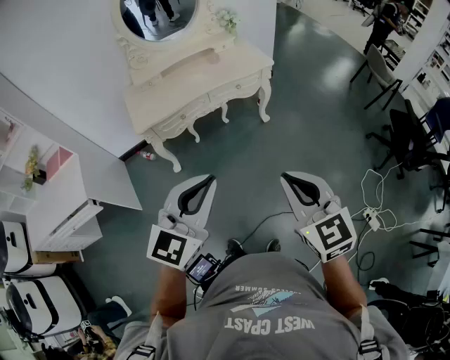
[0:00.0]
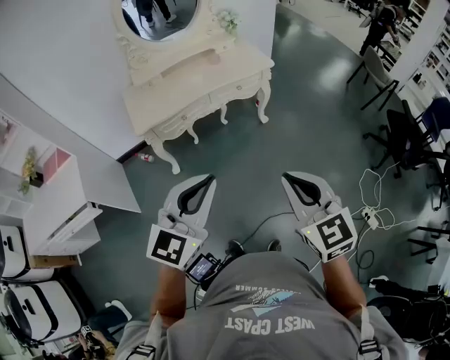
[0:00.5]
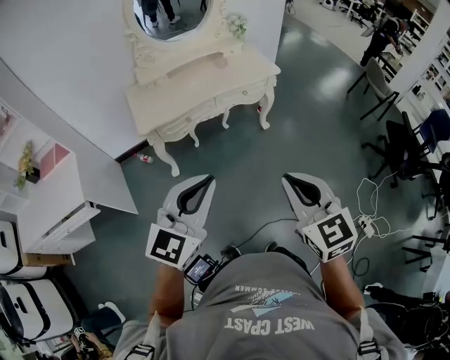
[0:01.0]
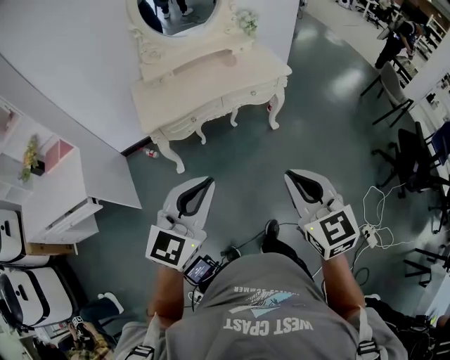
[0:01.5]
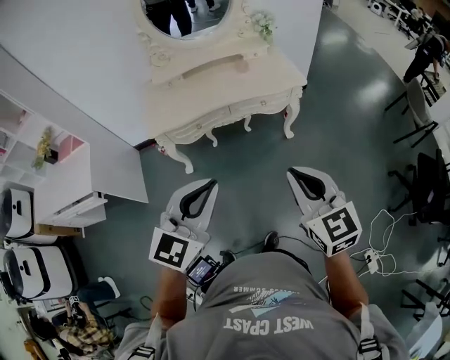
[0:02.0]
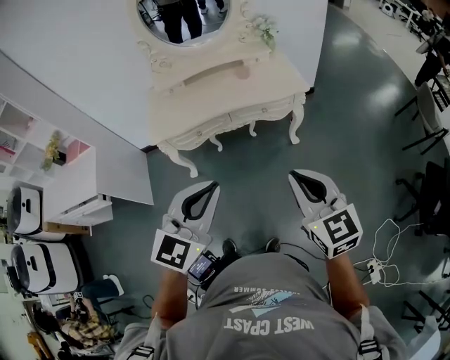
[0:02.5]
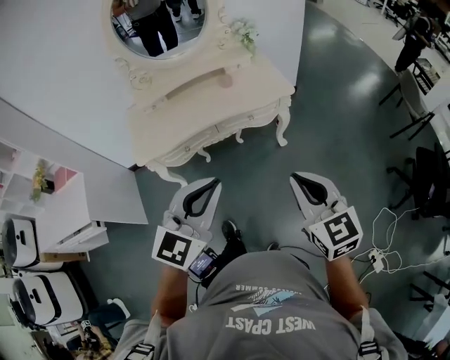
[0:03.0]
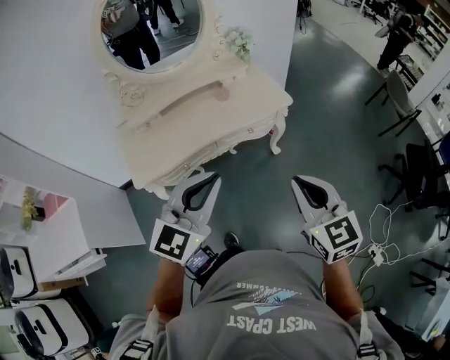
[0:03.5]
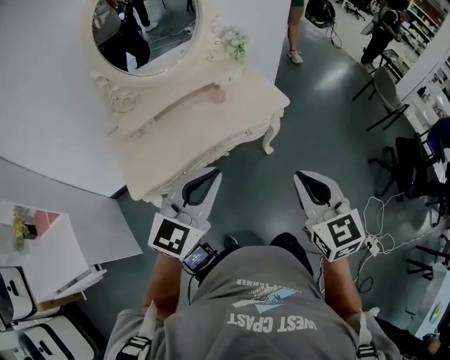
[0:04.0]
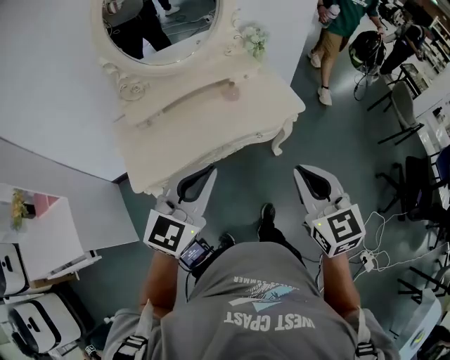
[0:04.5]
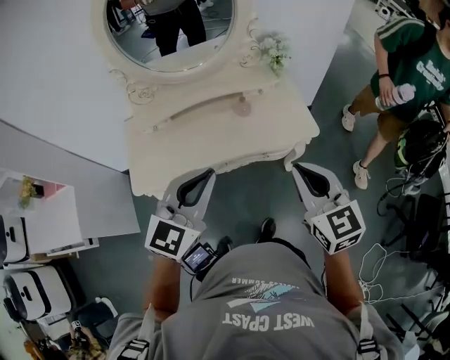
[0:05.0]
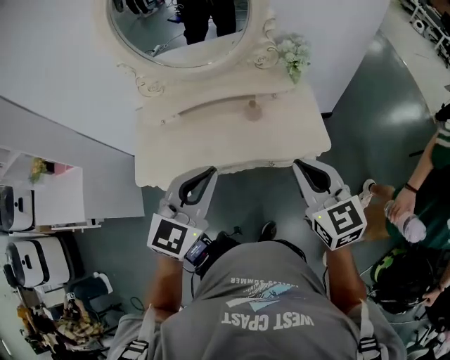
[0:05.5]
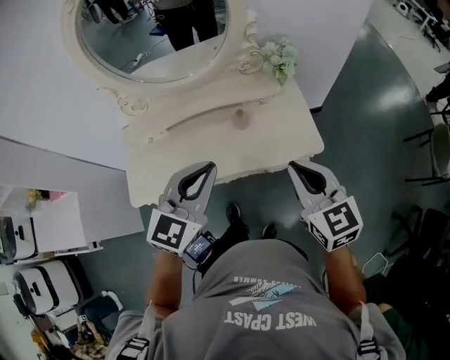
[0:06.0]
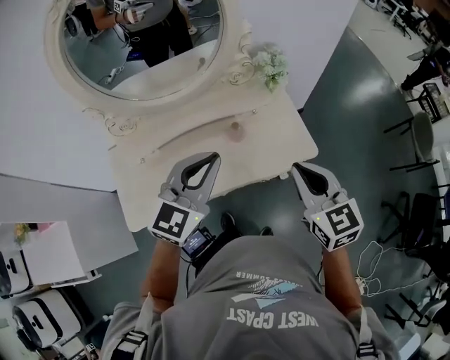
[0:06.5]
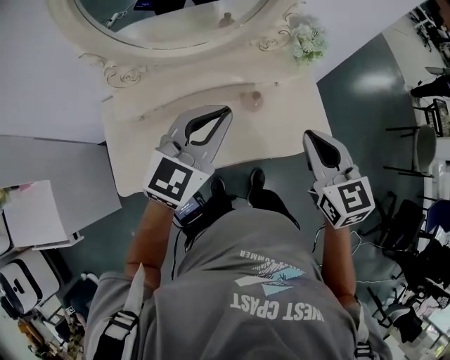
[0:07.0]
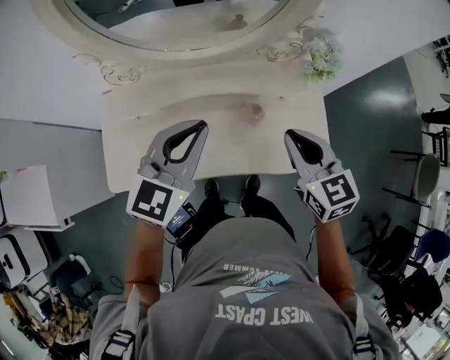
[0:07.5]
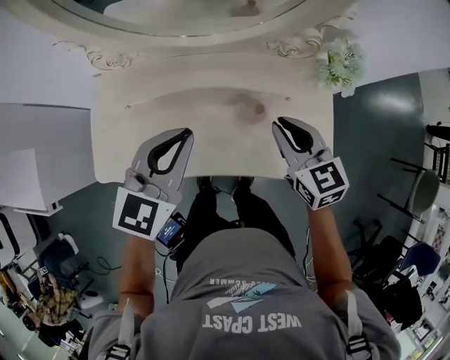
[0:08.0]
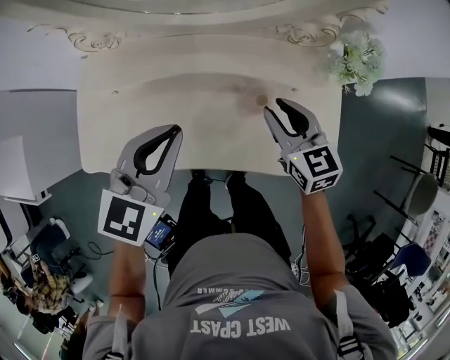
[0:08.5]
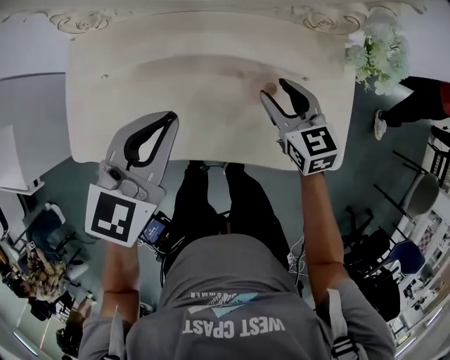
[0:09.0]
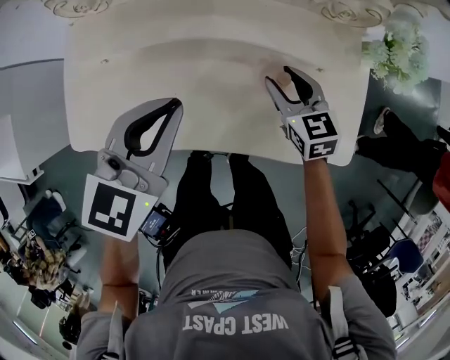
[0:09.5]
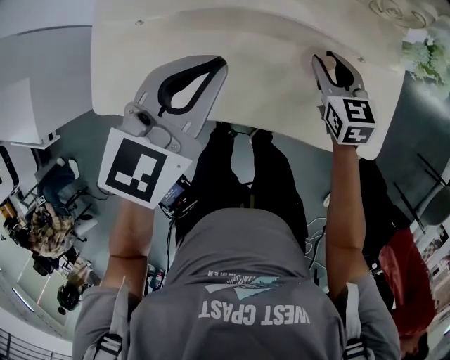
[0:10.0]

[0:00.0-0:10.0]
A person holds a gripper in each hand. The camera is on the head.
0:00.0 to 0:02.0: Both grippers move forward, some 20 cm.
0:02.0 to 0:04.0: The right gripper is displaced forward and to the left by some 20 cm. The left gripper shifts about 25 cm forward.
0:04.0 to 0:06.0: The left gripper ends up some 30 cm from where it was, and rotates approximately 20 degrees. Meanwhile the right gripper changes place by approximately 35 cm, and turns by some 20 degrees.
0:06.0 to 0:08.0: The left gripper shifts some 25 cm forward, to the left and downward; the right gripper travels forward, downward and to the left by about 30 cm.
0:08.0 to 0:10.0: The right gripper goes approximately 20 cm downward. The left gripper goes some 10 cm downward.

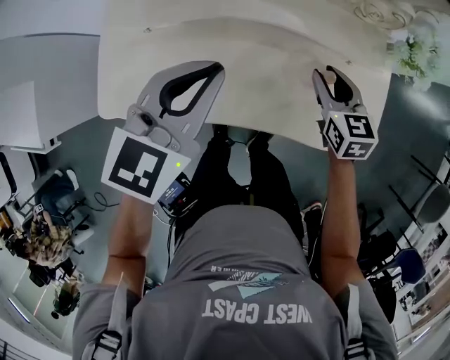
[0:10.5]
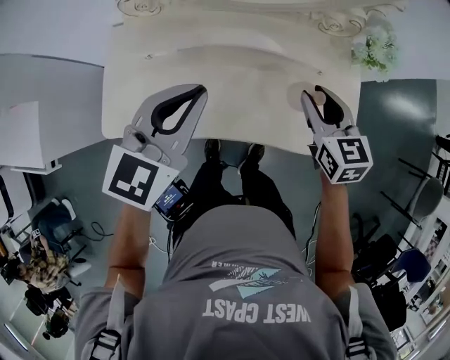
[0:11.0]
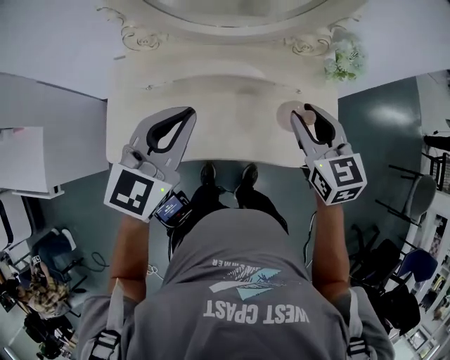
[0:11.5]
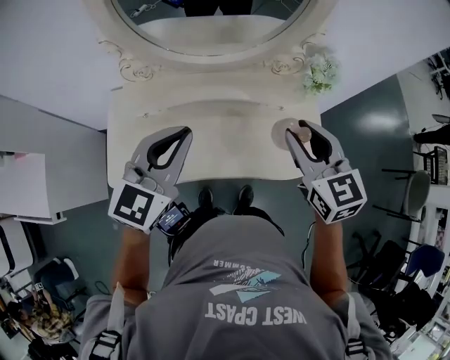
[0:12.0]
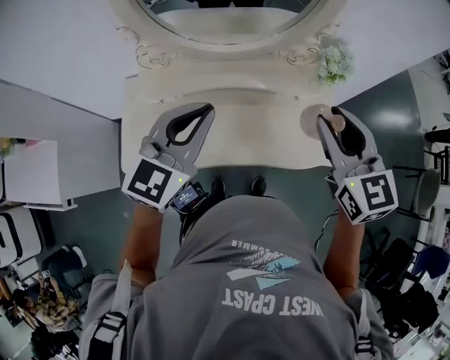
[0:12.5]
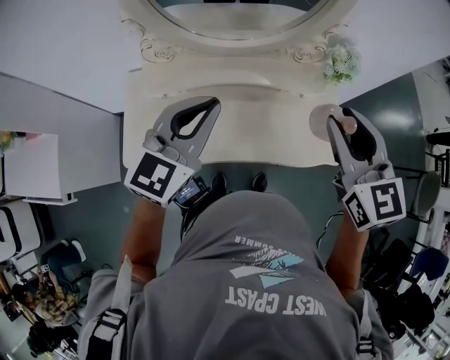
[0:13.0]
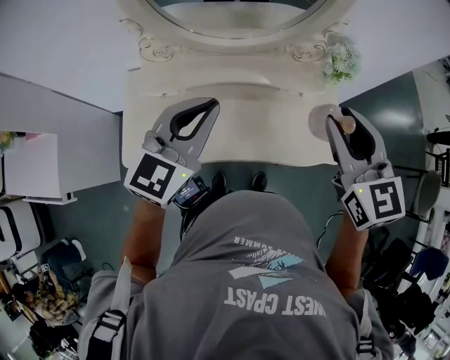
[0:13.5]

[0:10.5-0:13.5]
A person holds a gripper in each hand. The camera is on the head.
0:10.5 to 0:12.0: The left gripper goes roughly 15 cm upward, while the right gripper moves upward, approximately 30 cm.
0:12.0 to 0:13.5: The right gripper shifts some 5 cm upward.

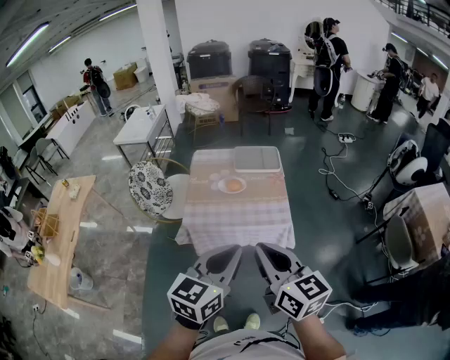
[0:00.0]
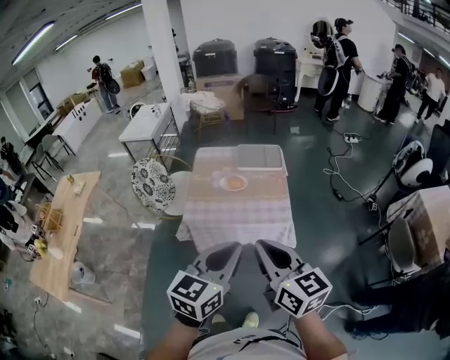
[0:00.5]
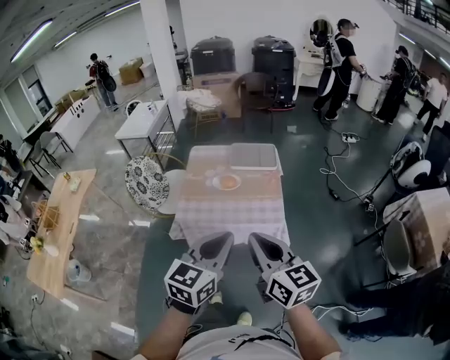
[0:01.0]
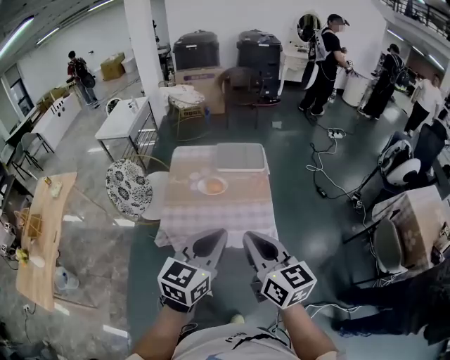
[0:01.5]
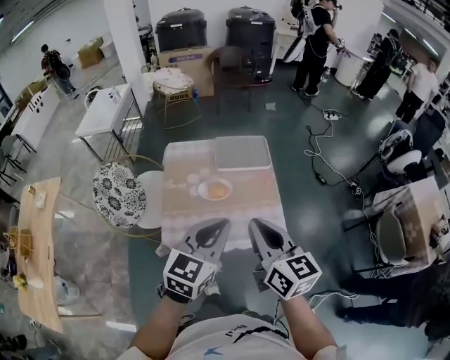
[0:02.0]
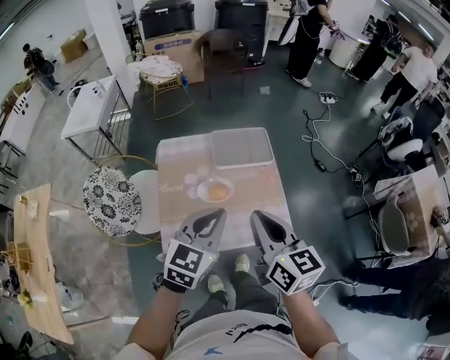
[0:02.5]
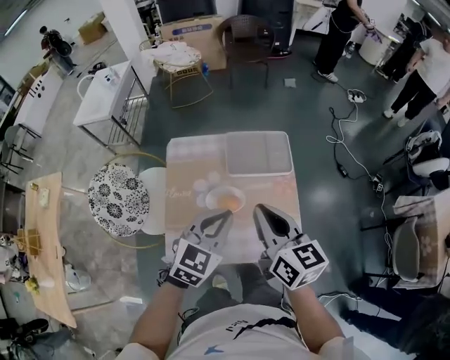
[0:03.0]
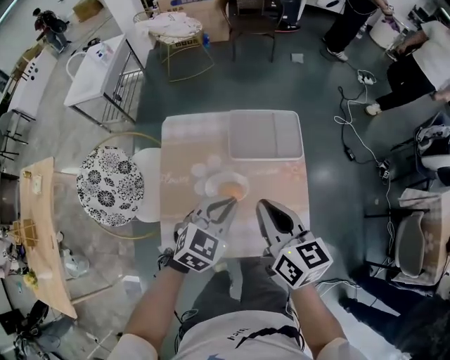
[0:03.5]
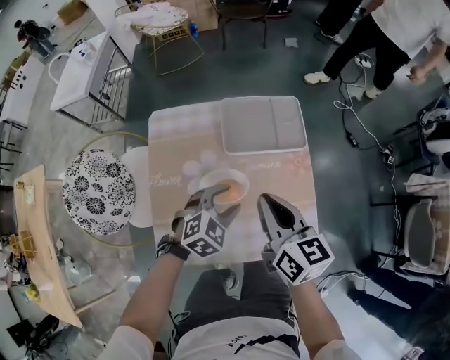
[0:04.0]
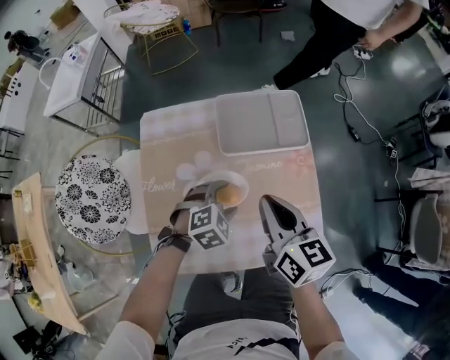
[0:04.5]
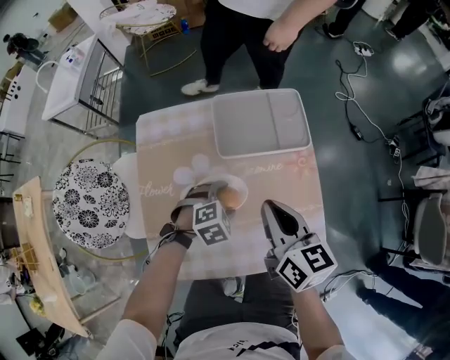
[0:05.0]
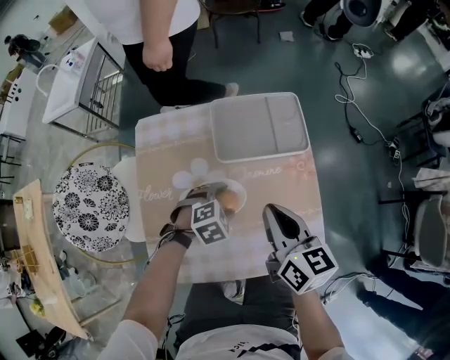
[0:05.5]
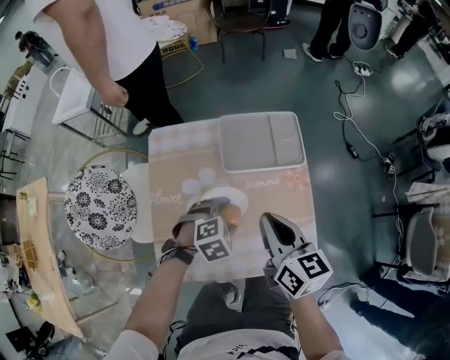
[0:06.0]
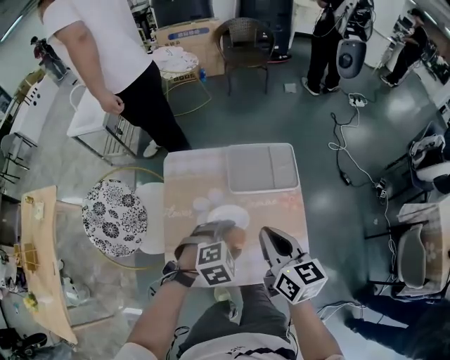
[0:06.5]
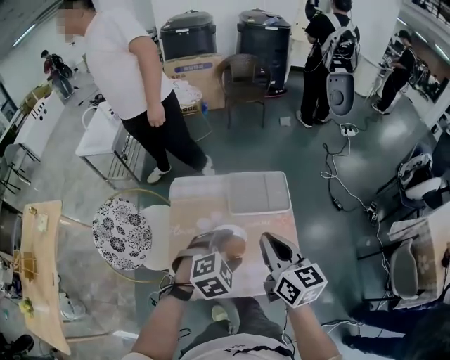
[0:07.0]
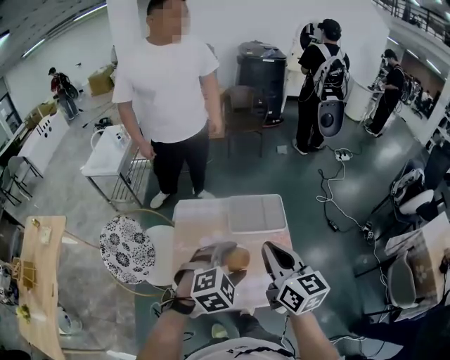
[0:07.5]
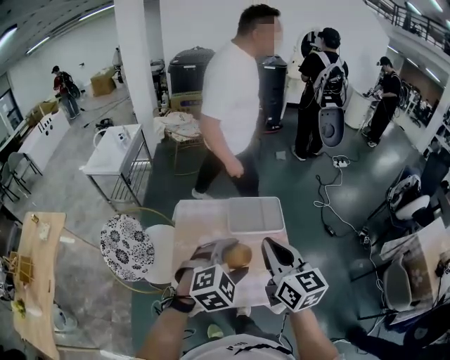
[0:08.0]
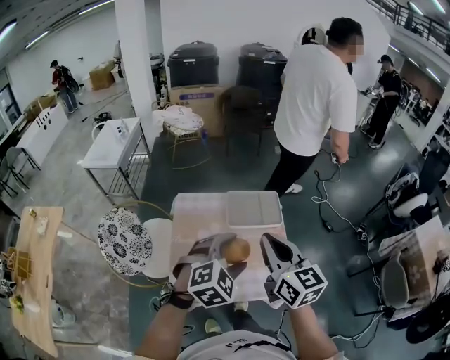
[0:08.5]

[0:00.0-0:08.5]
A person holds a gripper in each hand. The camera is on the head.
0:00.0 to 0:02.0: The grippers both shift forward by about 25 cm.
0:02.0 to 0:04.0: The left gripper travels downward and forward by roughly 40 cm, angles its fingers downward, by about 30 degrees, and opens its fingers, while the right gripper heads forward and downward, covering about 30 cm.
0:04.0 to 0:06.5: The two grippers go approximately 5 cm upward. The left gripper opens.
0:06.5 to 0:08.5: The grippers both shift upward by some 20 cm. The left gripper swivels some 20 degrees.

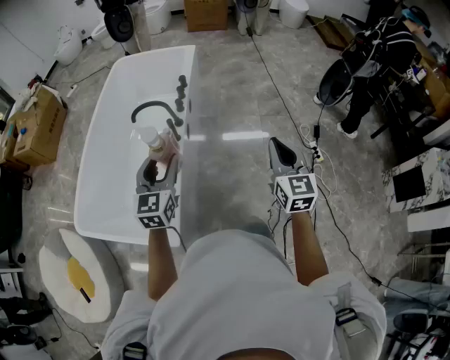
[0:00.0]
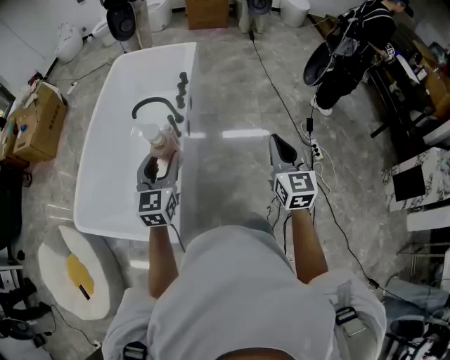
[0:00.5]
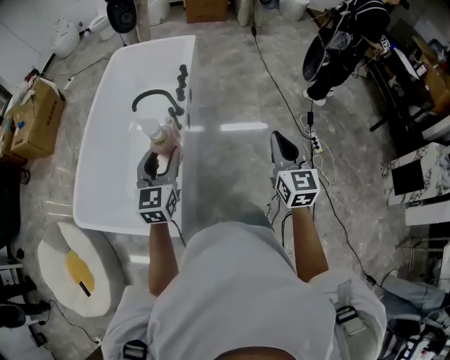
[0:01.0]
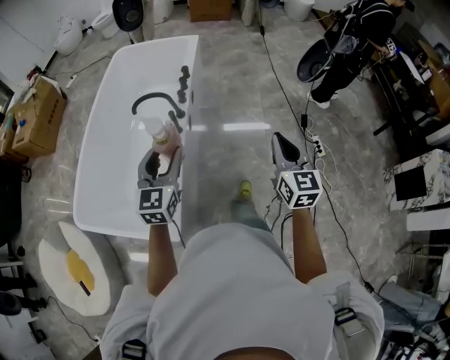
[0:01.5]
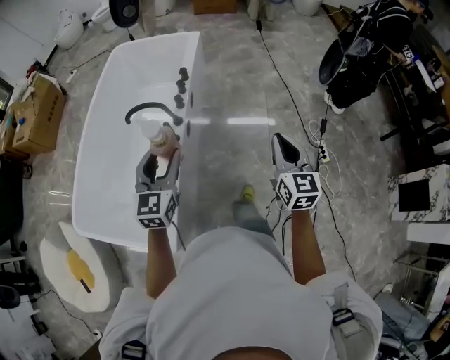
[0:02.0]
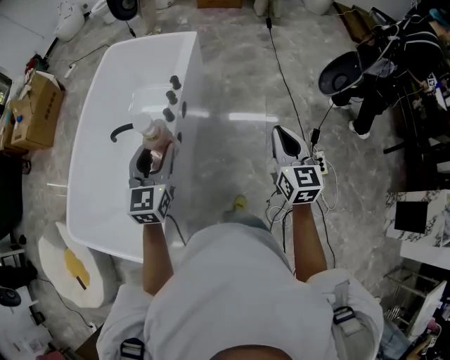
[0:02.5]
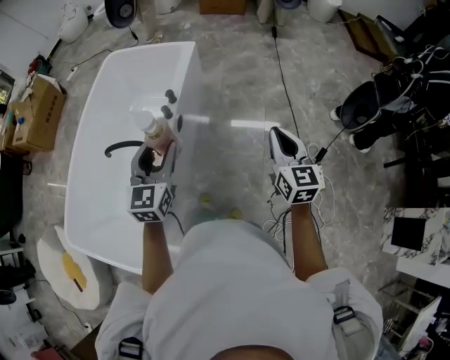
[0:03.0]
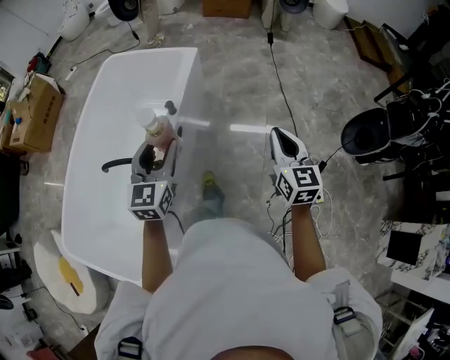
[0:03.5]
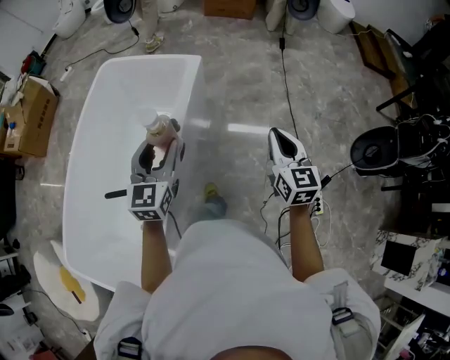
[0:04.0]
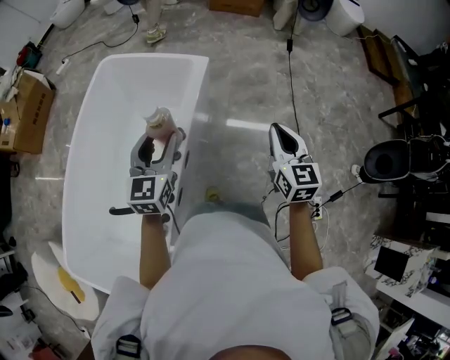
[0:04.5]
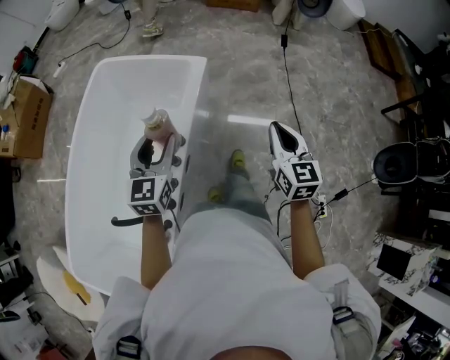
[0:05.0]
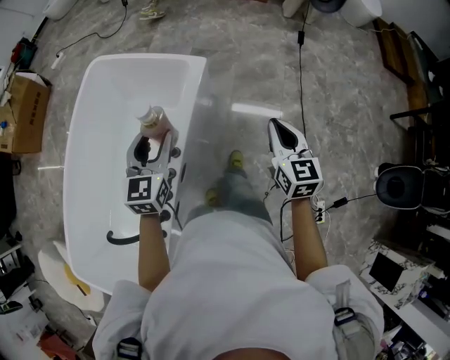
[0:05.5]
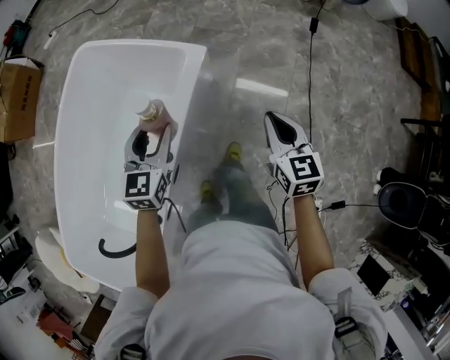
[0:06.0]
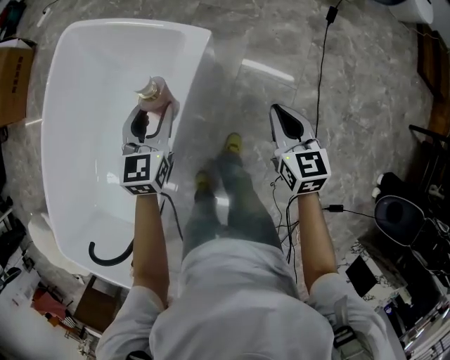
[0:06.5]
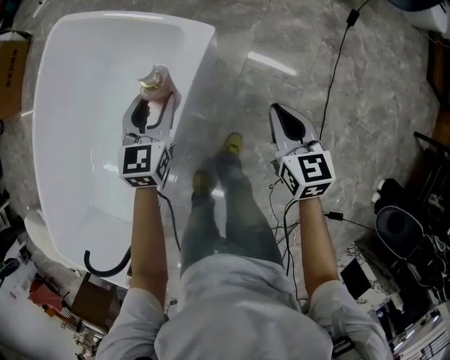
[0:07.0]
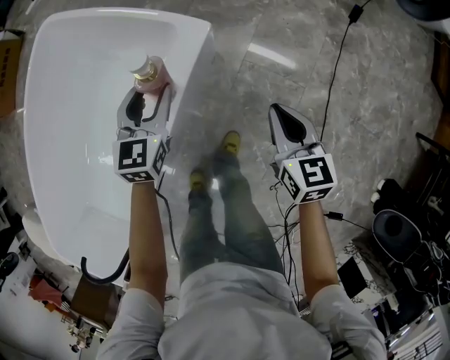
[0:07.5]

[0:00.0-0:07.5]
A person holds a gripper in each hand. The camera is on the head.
0:00.0 to 0:02.0: Both grippers move forward, about 15 cm.
0:02.0 to 0:04.0: Both grippers are carried forward, roughly 50 cm.
0:04.0 to 0:05.5: The grippers both shift forward by some 30 cm.
0:05.5 to 0:07.5: Both grippers move downward and forward, some 40 cm. The right gripper changes its angle by approximately 20 degrees.
